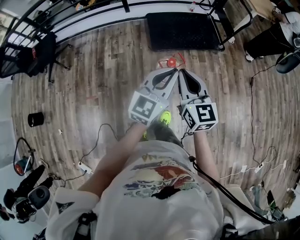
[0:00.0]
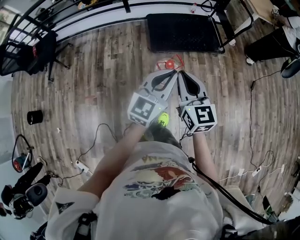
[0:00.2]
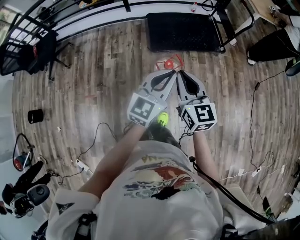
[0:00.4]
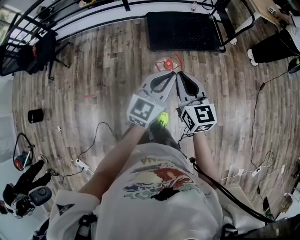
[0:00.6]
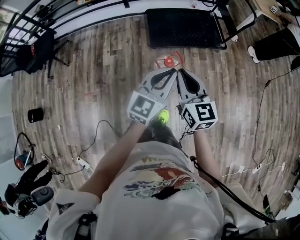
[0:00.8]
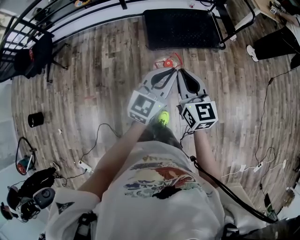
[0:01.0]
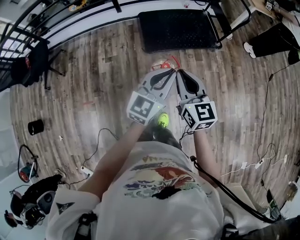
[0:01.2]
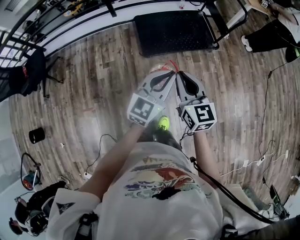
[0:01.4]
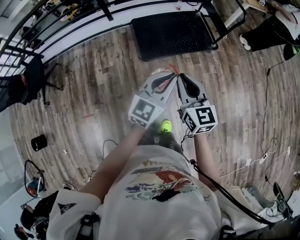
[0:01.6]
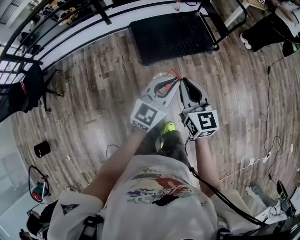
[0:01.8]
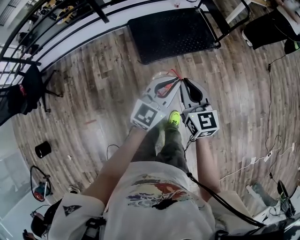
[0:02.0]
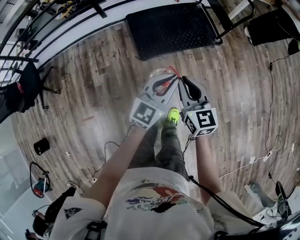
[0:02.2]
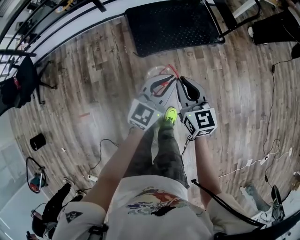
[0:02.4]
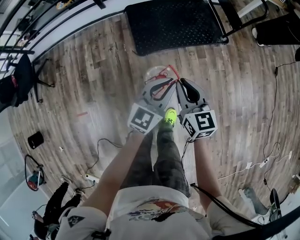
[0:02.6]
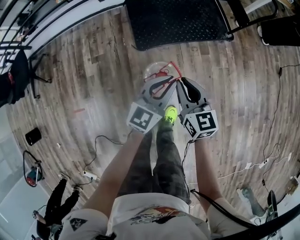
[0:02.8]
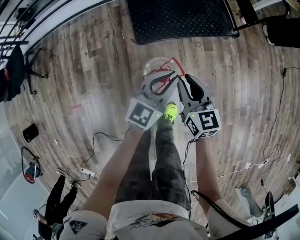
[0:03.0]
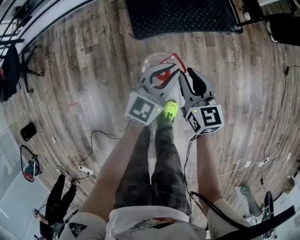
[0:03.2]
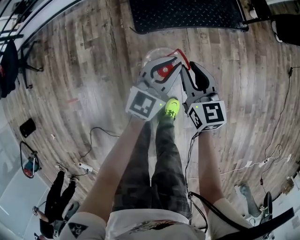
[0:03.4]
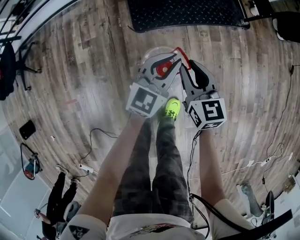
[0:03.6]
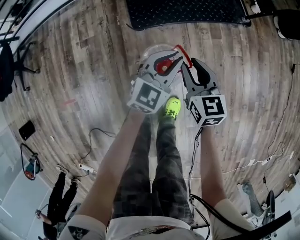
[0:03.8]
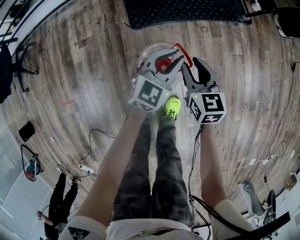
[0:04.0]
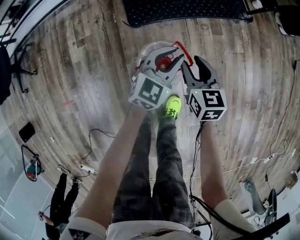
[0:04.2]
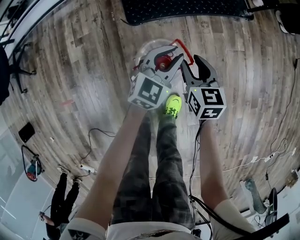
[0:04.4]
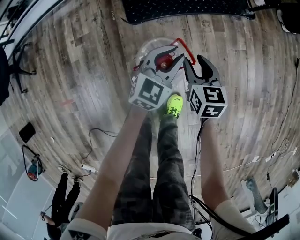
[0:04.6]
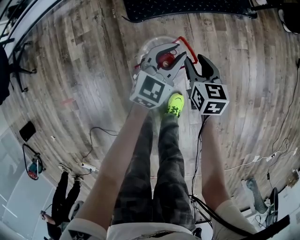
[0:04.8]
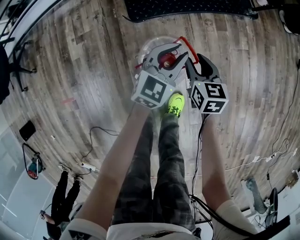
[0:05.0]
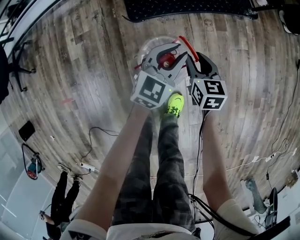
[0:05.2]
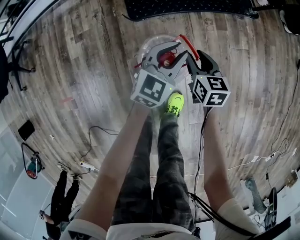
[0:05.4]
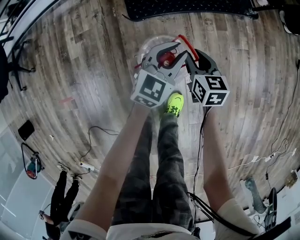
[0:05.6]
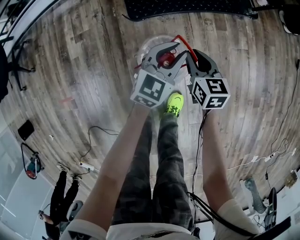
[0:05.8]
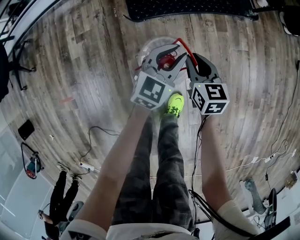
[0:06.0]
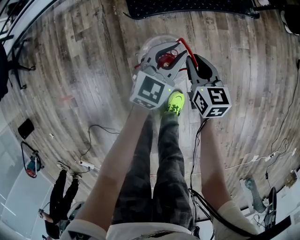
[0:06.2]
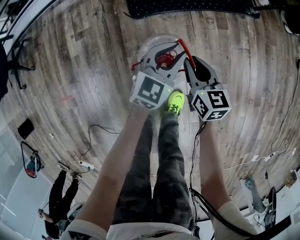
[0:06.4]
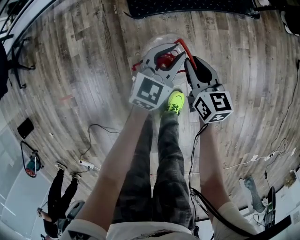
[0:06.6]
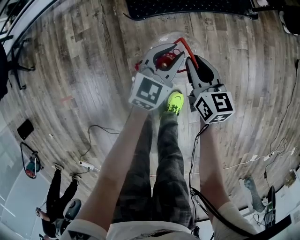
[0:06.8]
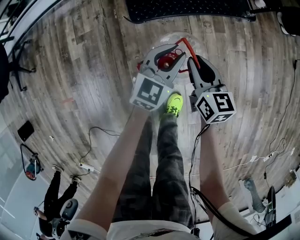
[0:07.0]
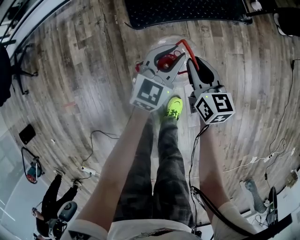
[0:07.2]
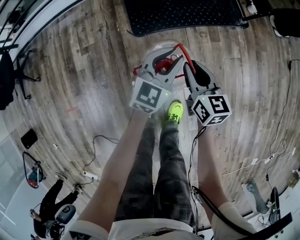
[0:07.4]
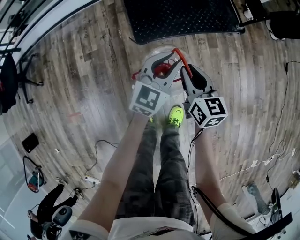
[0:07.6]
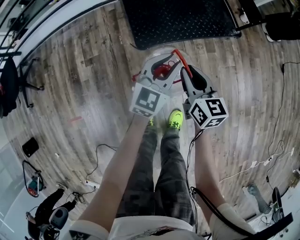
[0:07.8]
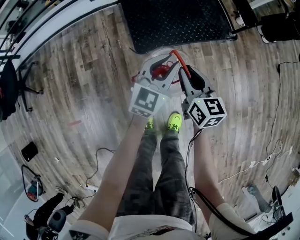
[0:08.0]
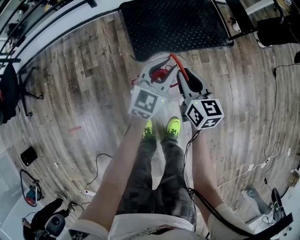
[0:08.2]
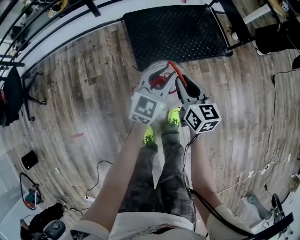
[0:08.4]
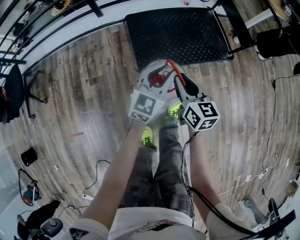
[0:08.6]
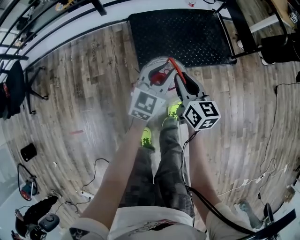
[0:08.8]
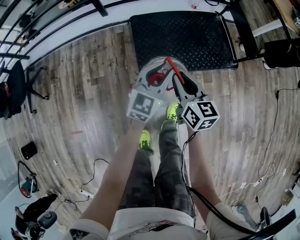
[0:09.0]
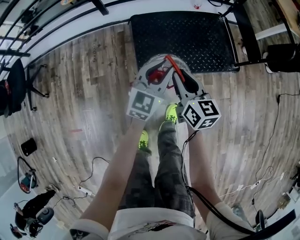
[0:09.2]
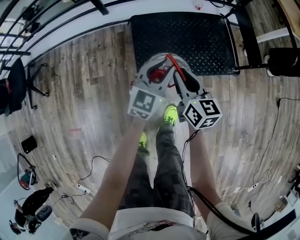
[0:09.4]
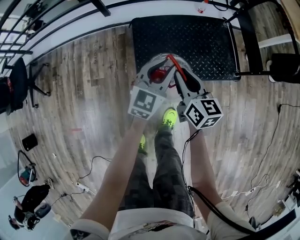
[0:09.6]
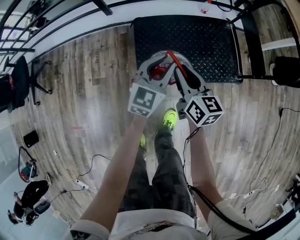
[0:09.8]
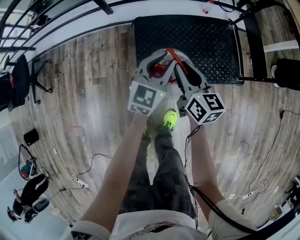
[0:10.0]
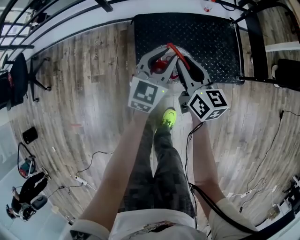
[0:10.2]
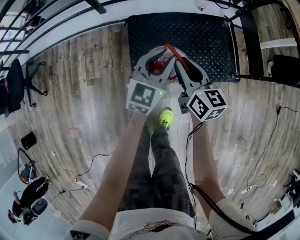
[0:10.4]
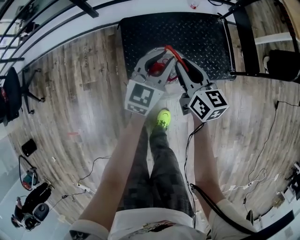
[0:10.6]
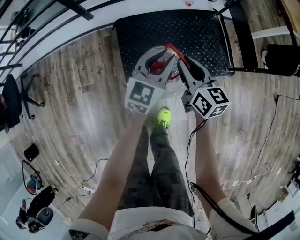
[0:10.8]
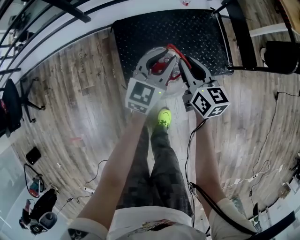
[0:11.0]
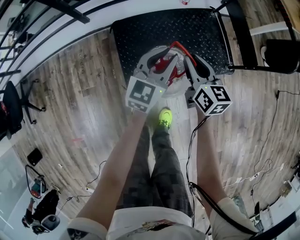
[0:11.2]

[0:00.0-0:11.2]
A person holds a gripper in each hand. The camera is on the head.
0:00.0 to 0:01.6: The two grippers go approximately 15 cm forward.
0:01.6 to 0:03.2: The left gripper heads downward and forward, covering some 40 cm, while the right gripper shifts roughly 35 cm downward.
0:03.2 to 0:04.8: Both grippers travel together downward, roughly 20 cm.
0:04.8 to 0:06.4: The right gripper closes.
0:06.4 to 0:08.0: The left gripper is displaced upward and to the left by about 20 cm. Meanwhile the right gripper travels upward by some 20 cm.
0:08.0 to 0:09.6: The two grippers go about 25 cm forward.
0:09.6 to 0:11.2: Both grippers move forward and to the right, roughly 15 cm.

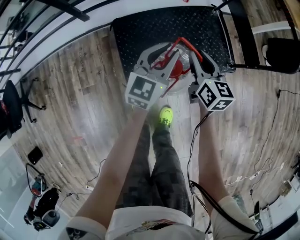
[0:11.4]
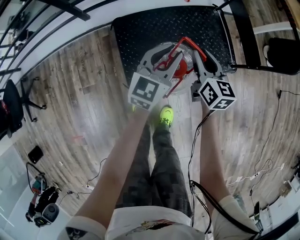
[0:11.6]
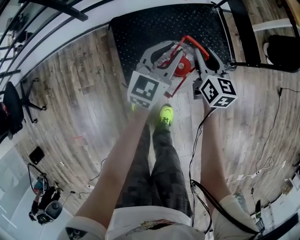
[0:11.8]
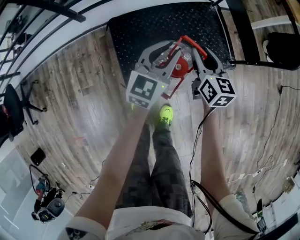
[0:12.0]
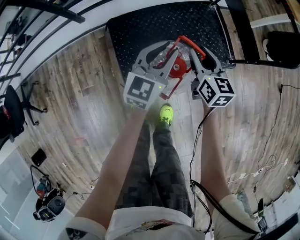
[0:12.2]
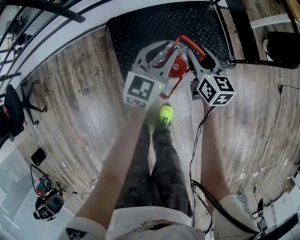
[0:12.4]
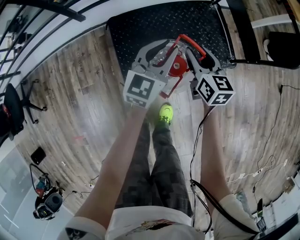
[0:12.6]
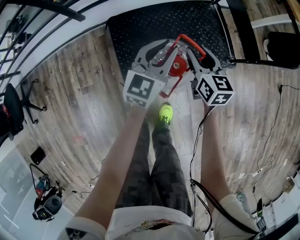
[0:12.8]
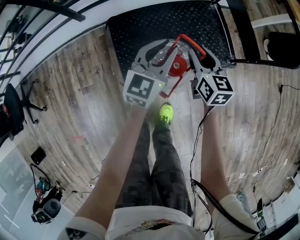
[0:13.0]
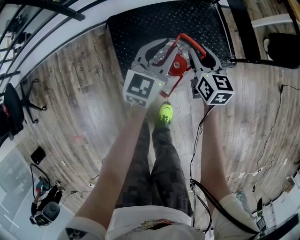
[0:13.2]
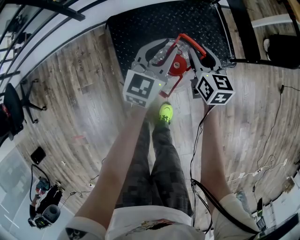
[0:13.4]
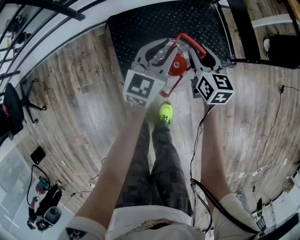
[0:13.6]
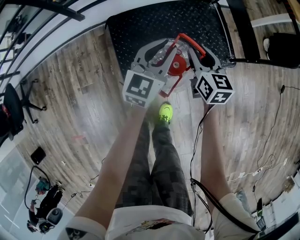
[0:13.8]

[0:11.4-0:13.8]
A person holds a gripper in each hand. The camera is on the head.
0:11.4 to 0:12.6: The right gripper opens its fingers.
0:12.6 to 0:13.8: The two grippers keep their place.

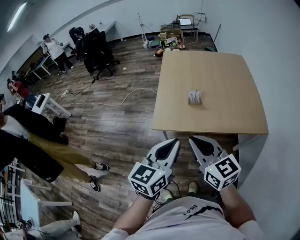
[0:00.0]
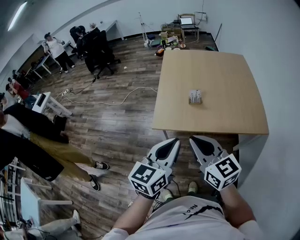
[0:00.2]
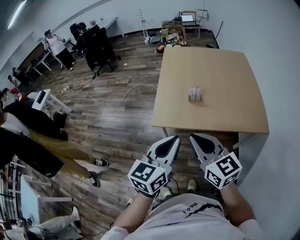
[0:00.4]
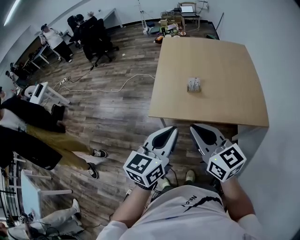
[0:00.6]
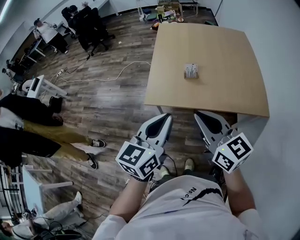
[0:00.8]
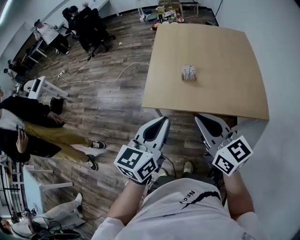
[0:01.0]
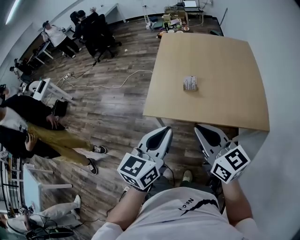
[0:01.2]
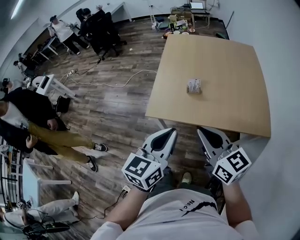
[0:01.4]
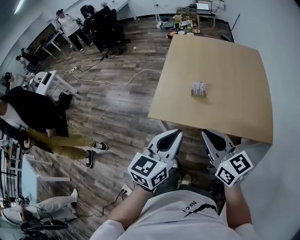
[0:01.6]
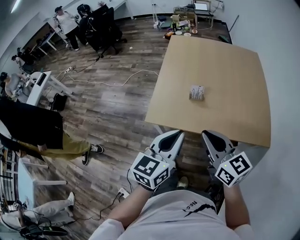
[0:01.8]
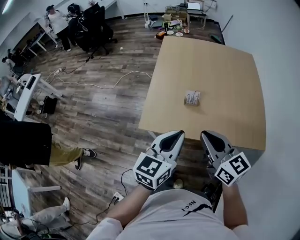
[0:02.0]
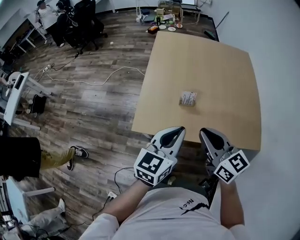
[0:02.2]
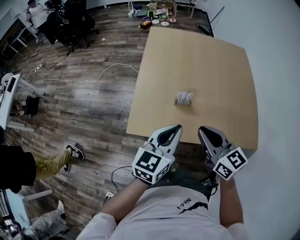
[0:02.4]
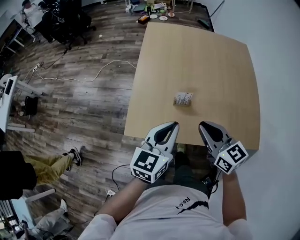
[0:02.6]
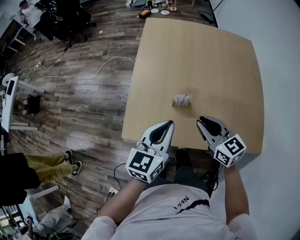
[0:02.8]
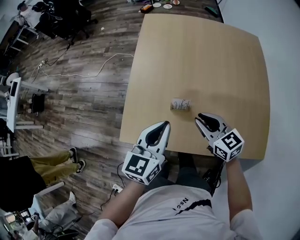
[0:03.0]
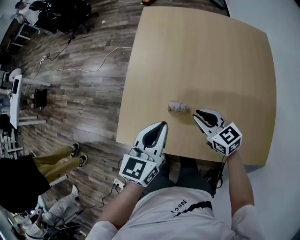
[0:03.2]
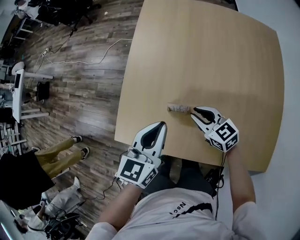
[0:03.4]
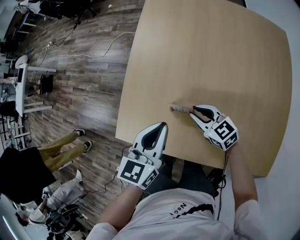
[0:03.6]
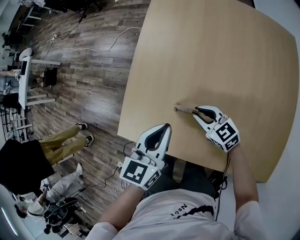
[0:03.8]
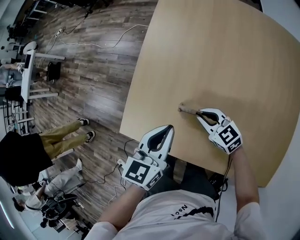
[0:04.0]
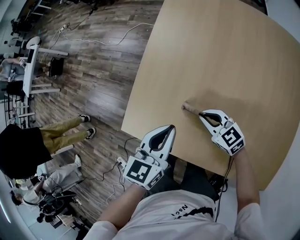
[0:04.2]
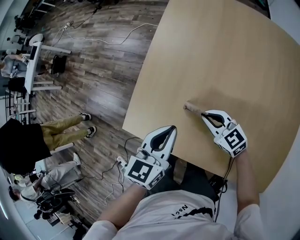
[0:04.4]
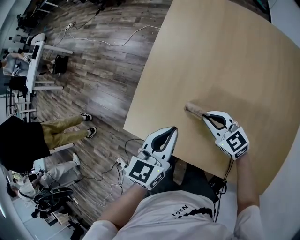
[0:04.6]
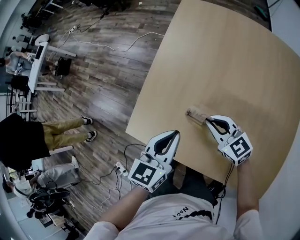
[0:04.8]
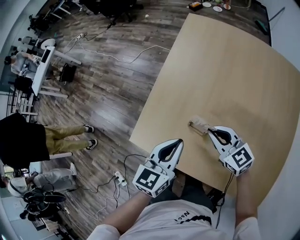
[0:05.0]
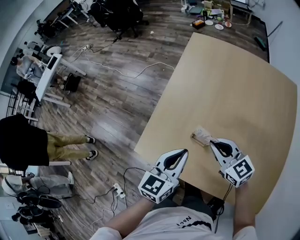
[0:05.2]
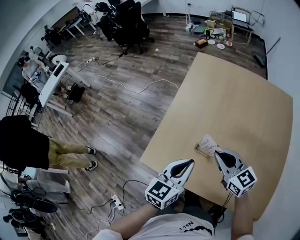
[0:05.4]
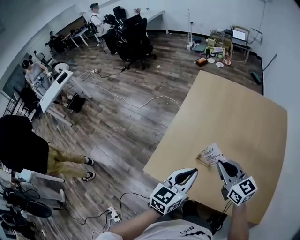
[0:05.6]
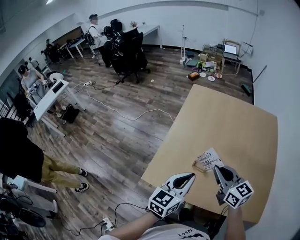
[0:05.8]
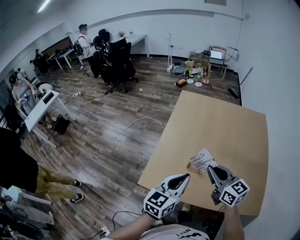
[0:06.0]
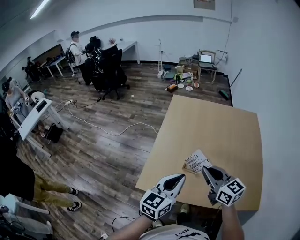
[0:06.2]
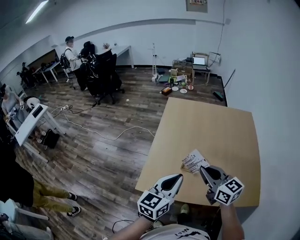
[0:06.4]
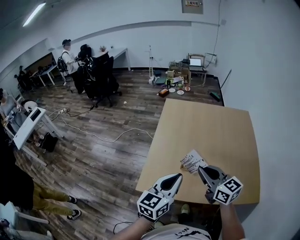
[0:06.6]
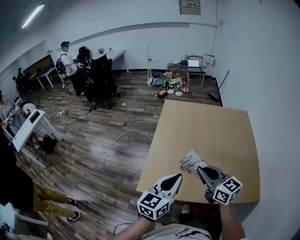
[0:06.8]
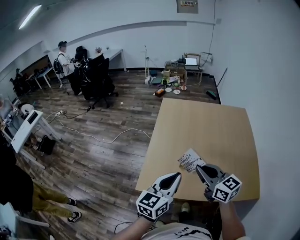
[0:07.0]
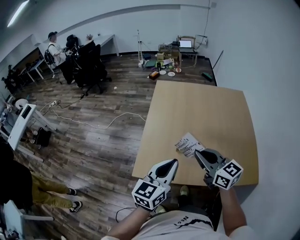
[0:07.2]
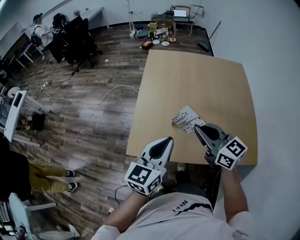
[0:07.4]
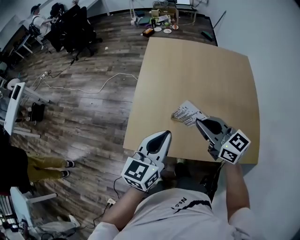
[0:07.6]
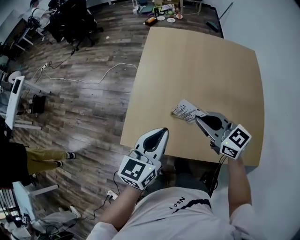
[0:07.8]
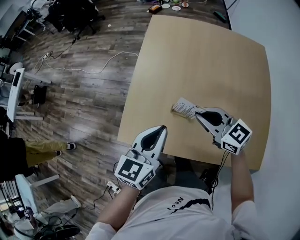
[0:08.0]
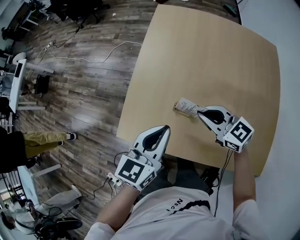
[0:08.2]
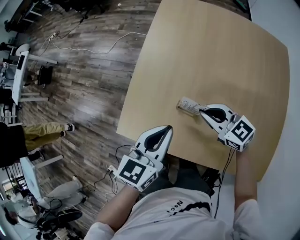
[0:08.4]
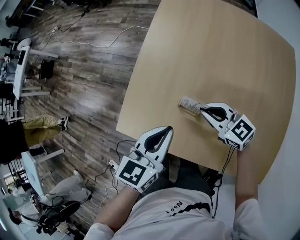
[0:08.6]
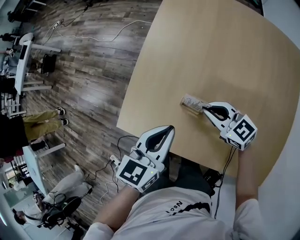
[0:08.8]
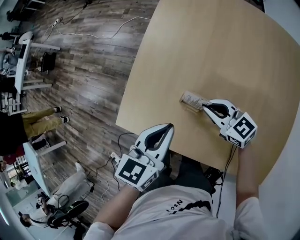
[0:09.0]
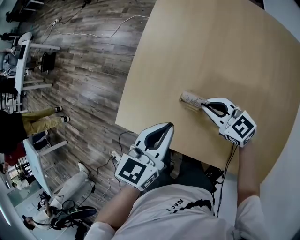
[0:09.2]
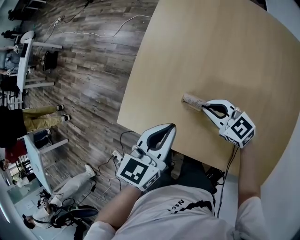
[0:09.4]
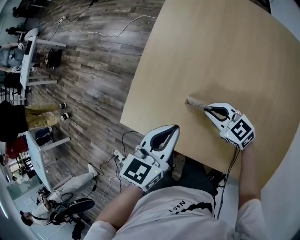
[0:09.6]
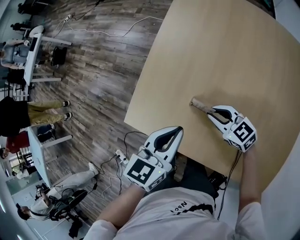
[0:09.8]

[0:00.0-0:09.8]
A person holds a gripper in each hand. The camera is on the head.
0:00.0 to 0:01.4: The left gripper travels to the right by some 5 cm. Meanwhile the right gripper goes approximately 10 cm to the right.
0:01.4 to 0:02.8: Both grippers move forward and downward, about 30 cm.
0:02.8 to 0:04.2: The left gripper shifts some 15 cm downward, forward and to the right, and swivels roughly 20 degrees. Meanwhile the right gripper heads downward and forward, covering roughly 20 cm, and changes its angle by some 30 degrees.
0:04.2 to 0:05.6: The right gripper shifts approximately 25 cm upward, and swivels approximately 20 degrees. The left gripper is displaced upward and backward by approximately 10 cm.
0:05.6 to 0:07.0: The grippers both shift upward and backward by about 15 cm.
0:07.0 to 0:08.4: The two grippers go some 25 cm downward and forward. The left gripper rotates some 20 degrees, while the right gripper rotates some 30 degrees.
0:08.4 to 0:09.8: The right gripper moves downward, some 10 cm.
